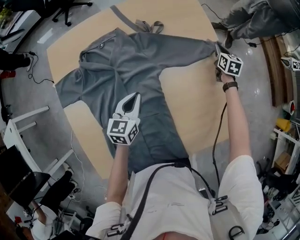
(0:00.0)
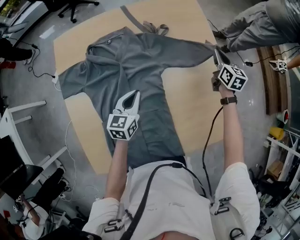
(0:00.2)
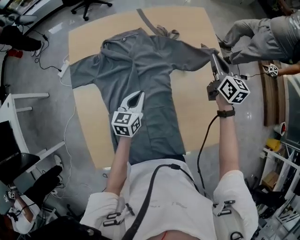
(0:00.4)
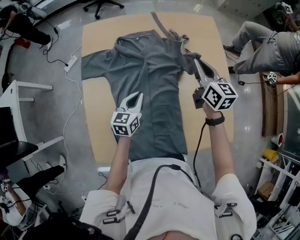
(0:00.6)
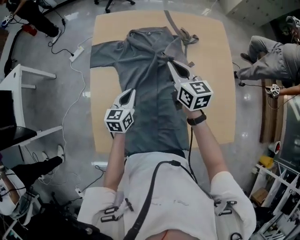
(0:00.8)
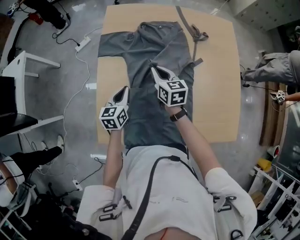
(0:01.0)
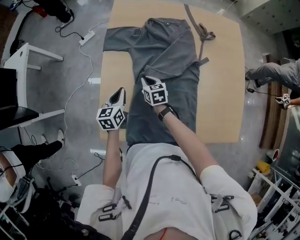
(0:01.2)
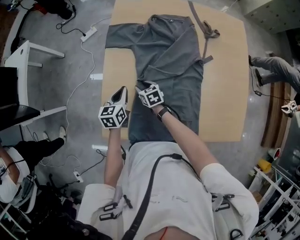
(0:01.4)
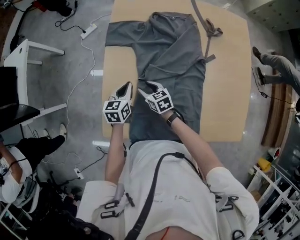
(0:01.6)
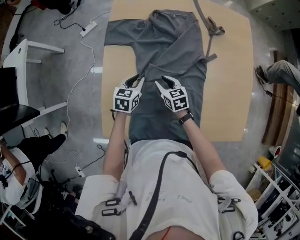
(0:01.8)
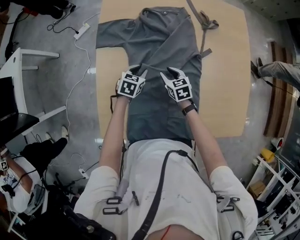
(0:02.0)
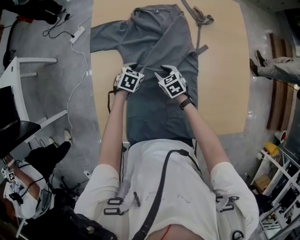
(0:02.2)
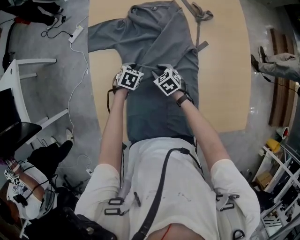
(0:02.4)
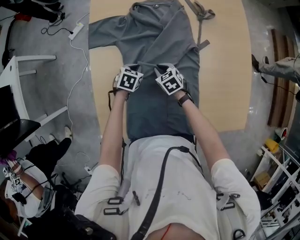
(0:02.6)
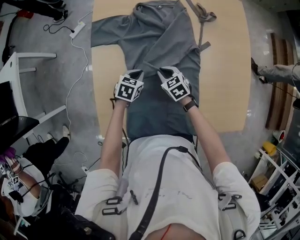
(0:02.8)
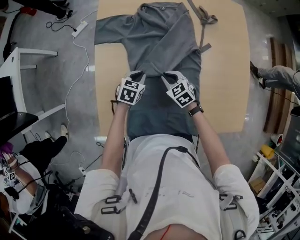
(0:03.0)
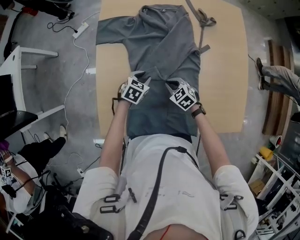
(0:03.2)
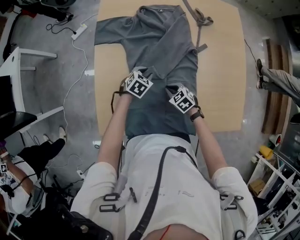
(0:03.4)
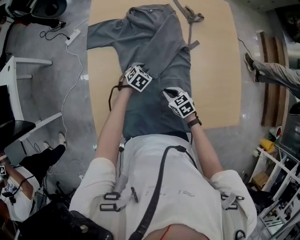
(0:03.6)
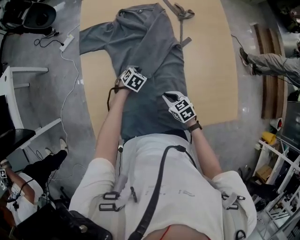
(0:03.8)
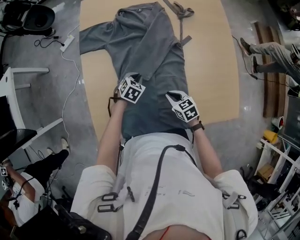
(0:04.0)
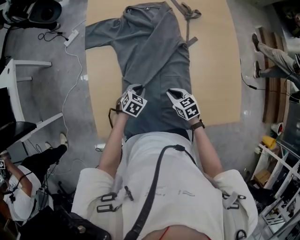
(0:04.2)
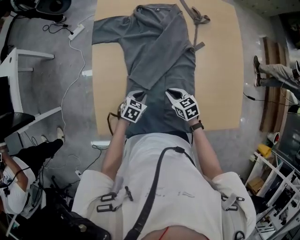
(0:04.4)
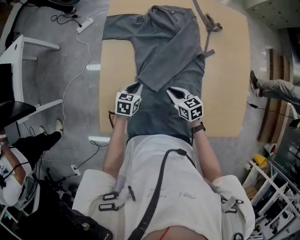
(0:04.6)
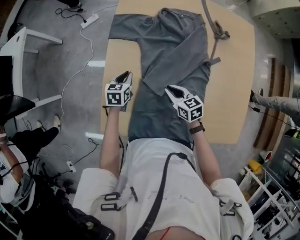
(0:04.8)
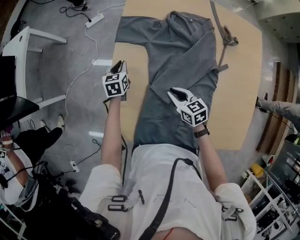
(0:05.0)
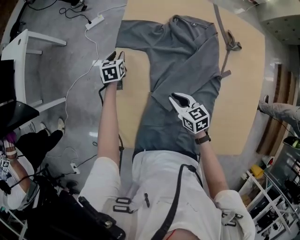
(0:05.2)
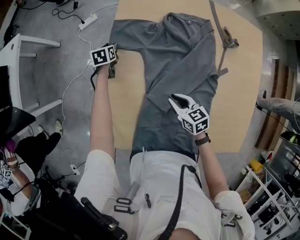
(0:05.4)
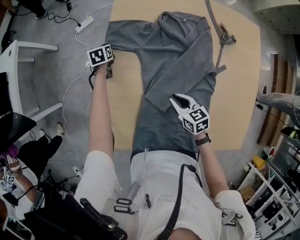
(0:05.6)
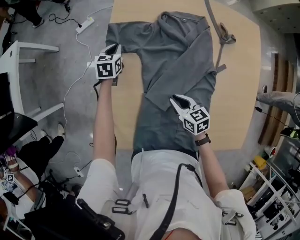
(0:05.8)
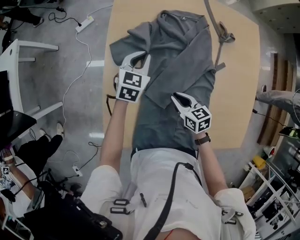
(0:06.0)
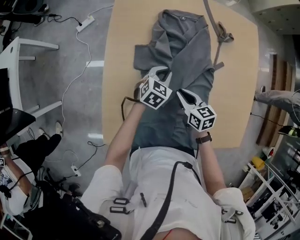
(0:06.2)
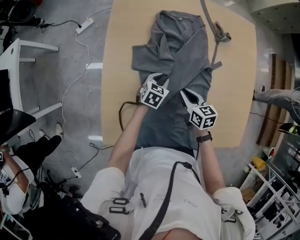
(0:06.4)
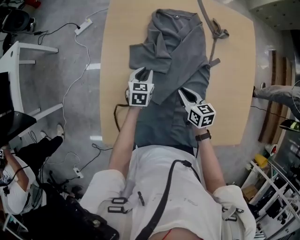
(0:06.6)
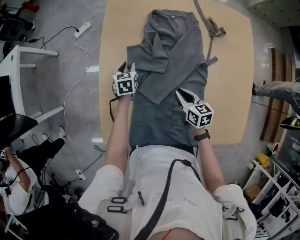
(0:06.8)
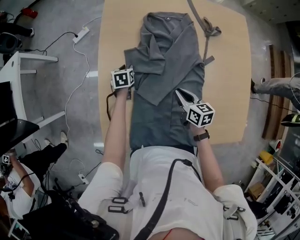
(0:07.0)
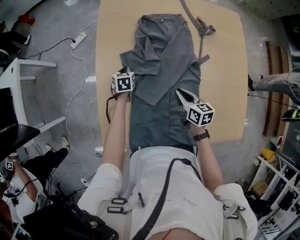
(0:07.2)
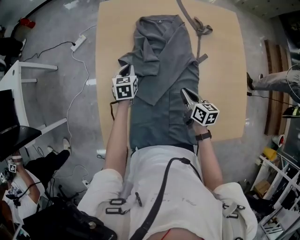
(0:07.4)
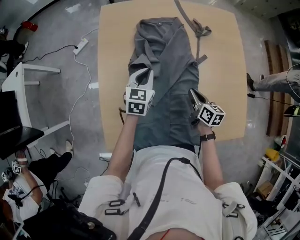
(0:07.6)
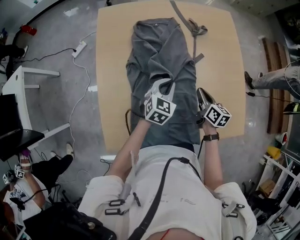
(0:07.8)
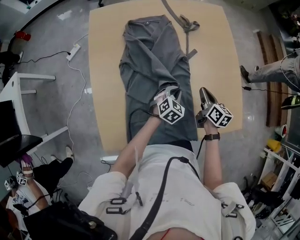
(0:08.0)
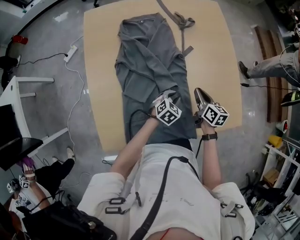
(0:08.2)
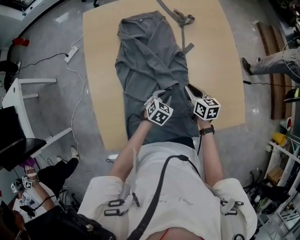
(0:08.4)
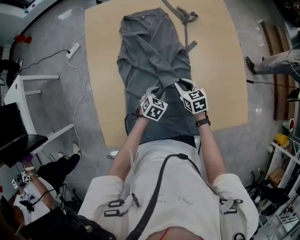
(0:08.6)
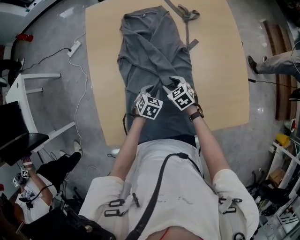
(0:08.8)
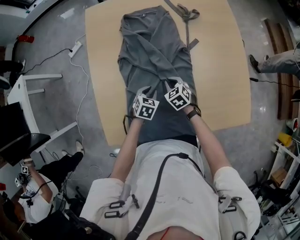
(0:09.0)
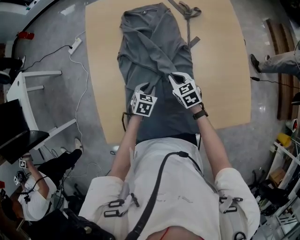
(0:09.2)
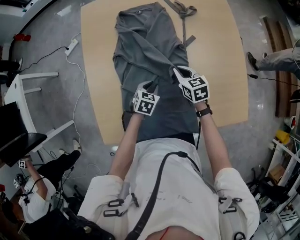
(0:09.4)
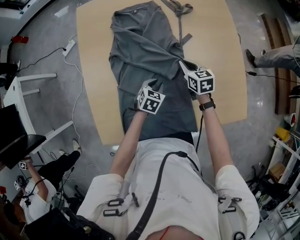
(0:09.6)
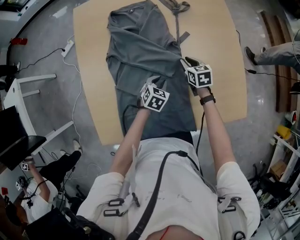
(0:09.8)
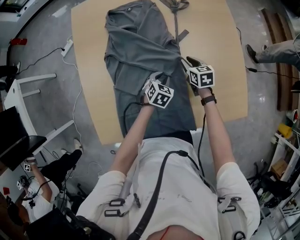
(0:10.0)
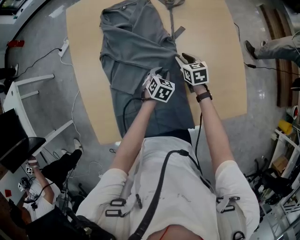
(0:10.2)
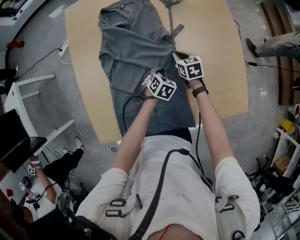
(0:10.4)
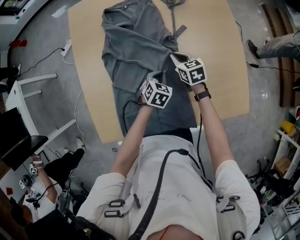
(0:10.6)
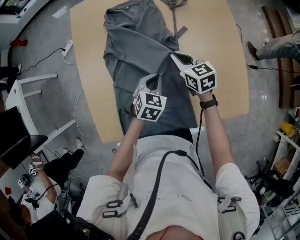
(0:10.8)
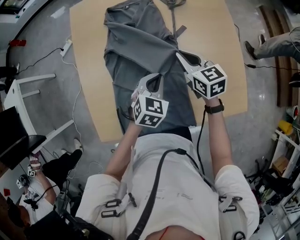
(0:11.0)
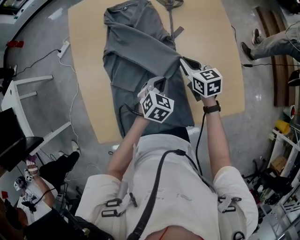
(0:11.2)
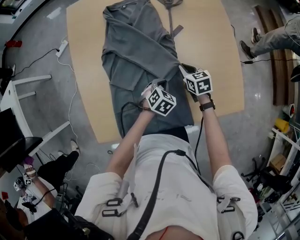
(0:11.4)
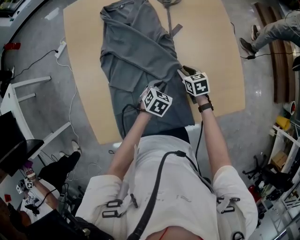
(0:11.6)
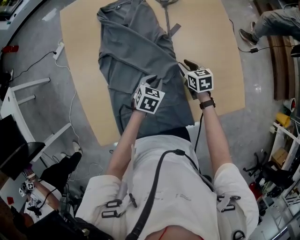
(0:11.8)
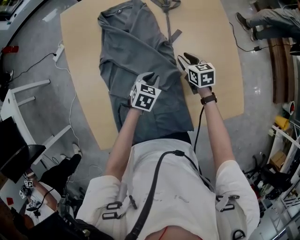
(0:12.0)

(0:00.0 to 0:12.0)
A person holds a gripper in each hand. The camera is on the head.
0:00.0 - 0:01.6: The right gripper travels upward and back again, about 25 cm each way, swivels roughly 60 degrees, and opens its fingers. Meanwhile the left gripper moves approximately 30 cm, and rotates approximately 30 degrees.
0:01.6 - 0:03.0: The right gripper is displaced to the right by some 15 cm, changes its angle by roughly 20 degrees, and closes up, while the left gripper moves to the right and downward, about 10 cm, changes its angle by some 30 degrees, and opens and closes again.
0:03.0 - 0:04.4: The two grippers go some 10 cm backward. The right gripper swivels approximately 20 degrees.
0:04.4 - 0:06.0: The right gripper moves roughly 10 cm; the left gripper changes place by some 30 cm, turns by some 30 degrees, and opens, then closes again.
0:06.0 - 0:07.6: The left gripper goes roughly 10 cm to the right and backward, moves about 15 cm downward and comes back, and opens, then closes again. The right gripper moves to the right, roughly 15 cm, and rotates roughly 30 degrees.
0:07.6 - 0:09.0: Both grippers travel together downward, some 15 cm. The left gripper changes its angle by some 30 degrees. Meanwhile the right gripper rotates around the line of its fingers by about 50 degrees, counterclockwise from behind, and opens, then closes once more.
0:09.0 - 0:10.4: The right gripper goes some 15 cm to the right and forward, and swivels some 30 degrees, while the left gripper goes approximately 15 cm to the right.
0:10.4 - 0:12.0: The left gripper is displaced upward by approximately 5 cm, while the right gripper moves up and down over some 20 cm, changing direction 2 times.

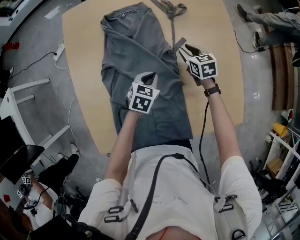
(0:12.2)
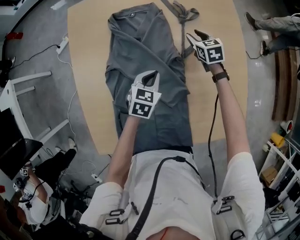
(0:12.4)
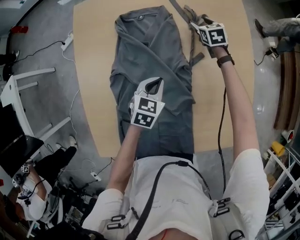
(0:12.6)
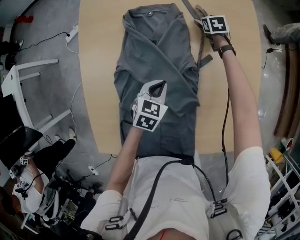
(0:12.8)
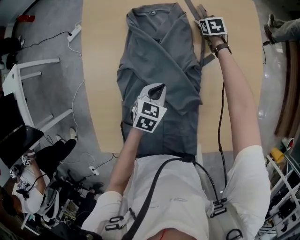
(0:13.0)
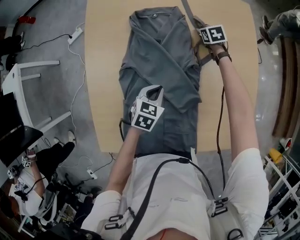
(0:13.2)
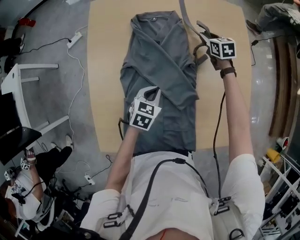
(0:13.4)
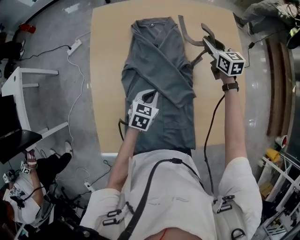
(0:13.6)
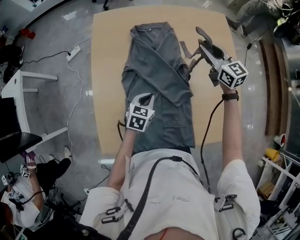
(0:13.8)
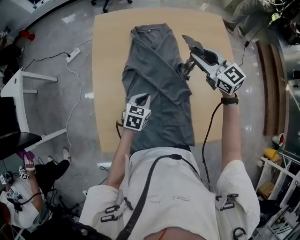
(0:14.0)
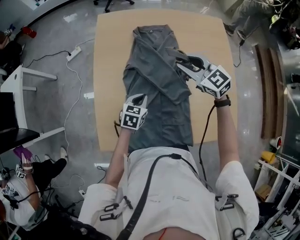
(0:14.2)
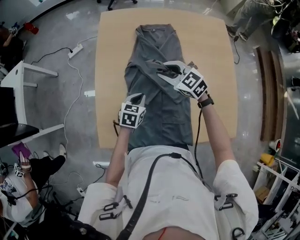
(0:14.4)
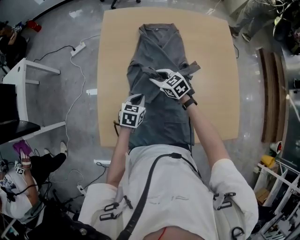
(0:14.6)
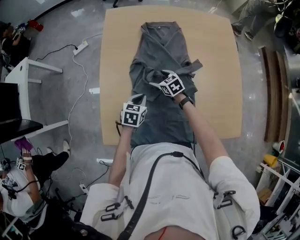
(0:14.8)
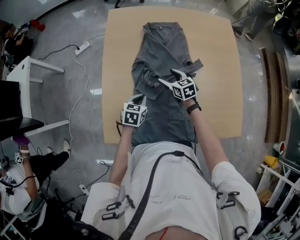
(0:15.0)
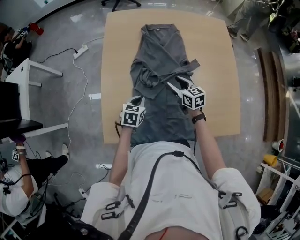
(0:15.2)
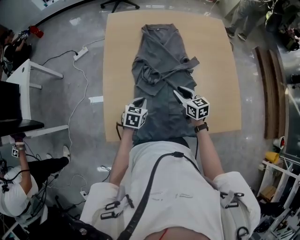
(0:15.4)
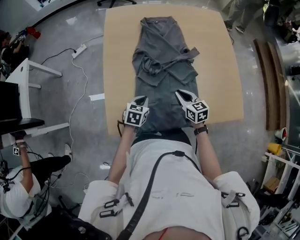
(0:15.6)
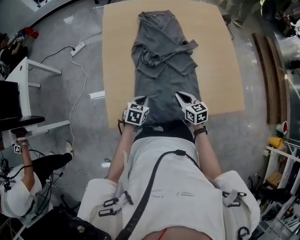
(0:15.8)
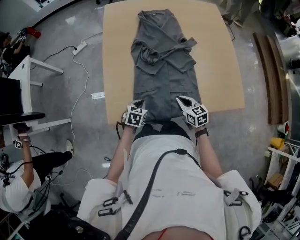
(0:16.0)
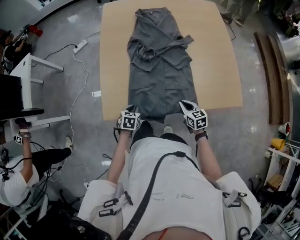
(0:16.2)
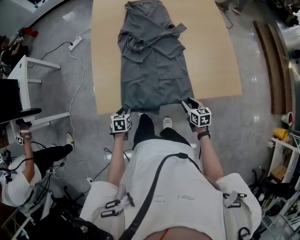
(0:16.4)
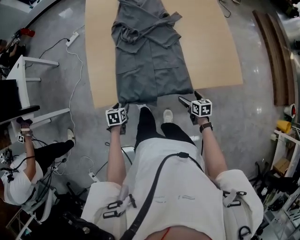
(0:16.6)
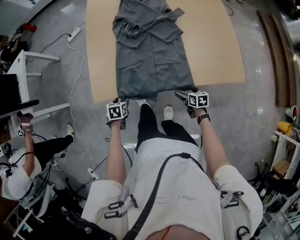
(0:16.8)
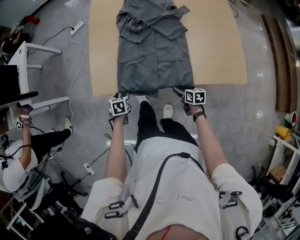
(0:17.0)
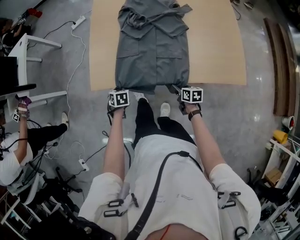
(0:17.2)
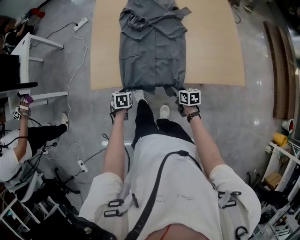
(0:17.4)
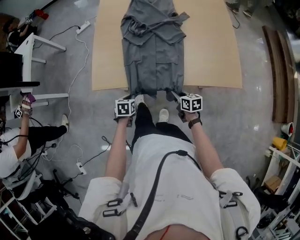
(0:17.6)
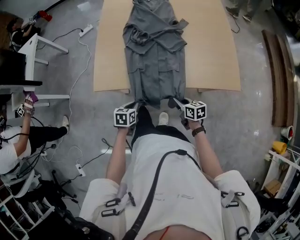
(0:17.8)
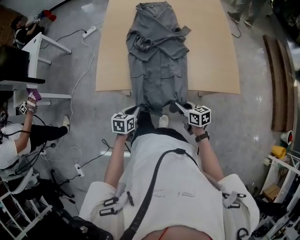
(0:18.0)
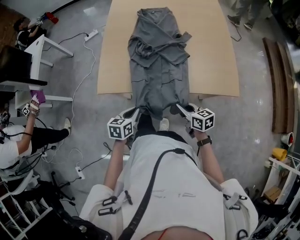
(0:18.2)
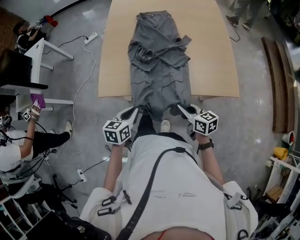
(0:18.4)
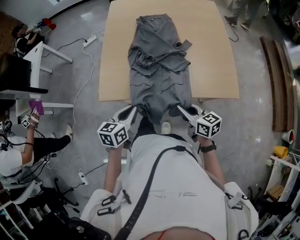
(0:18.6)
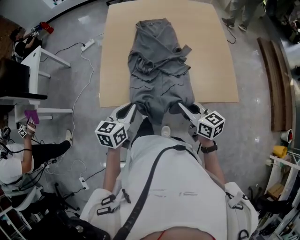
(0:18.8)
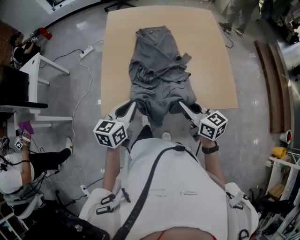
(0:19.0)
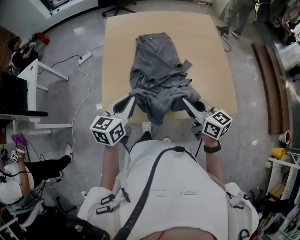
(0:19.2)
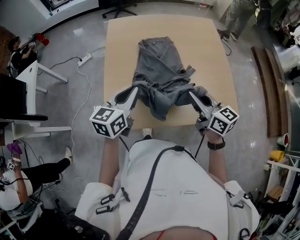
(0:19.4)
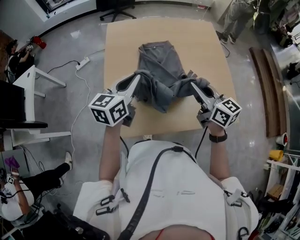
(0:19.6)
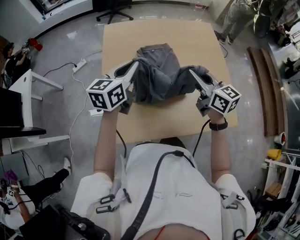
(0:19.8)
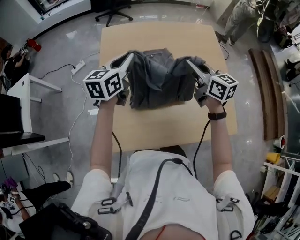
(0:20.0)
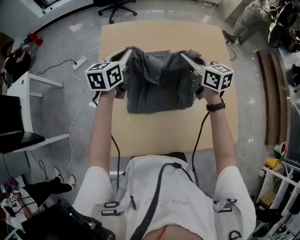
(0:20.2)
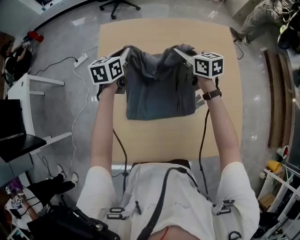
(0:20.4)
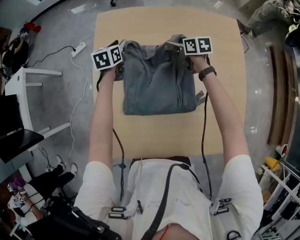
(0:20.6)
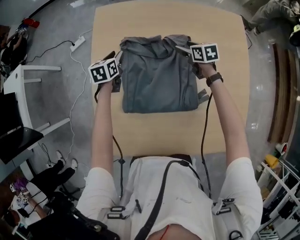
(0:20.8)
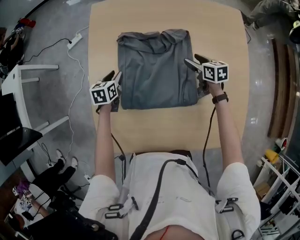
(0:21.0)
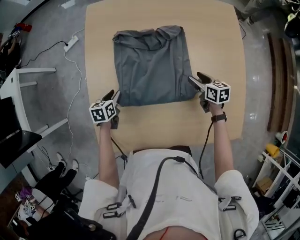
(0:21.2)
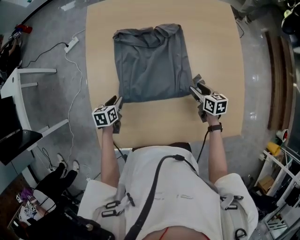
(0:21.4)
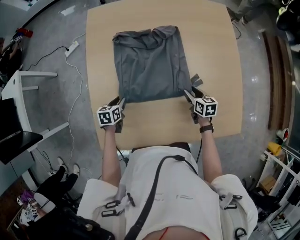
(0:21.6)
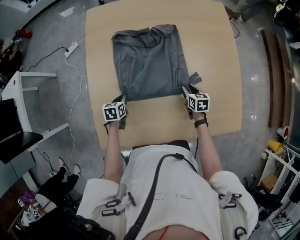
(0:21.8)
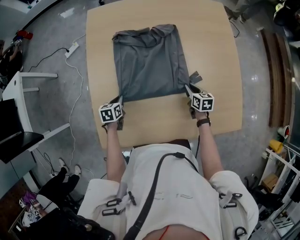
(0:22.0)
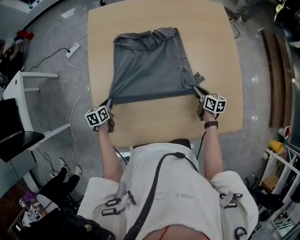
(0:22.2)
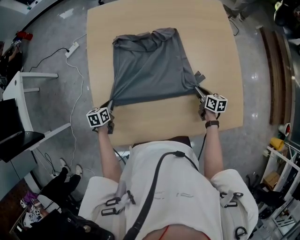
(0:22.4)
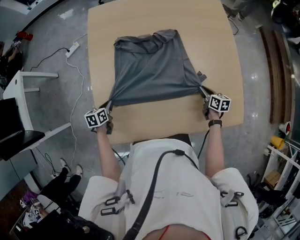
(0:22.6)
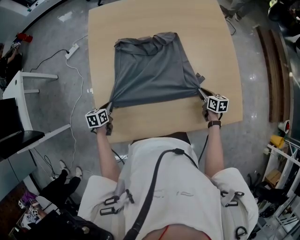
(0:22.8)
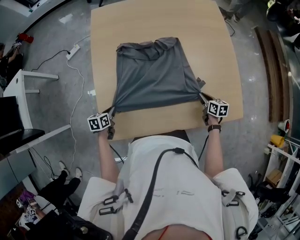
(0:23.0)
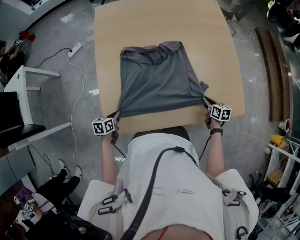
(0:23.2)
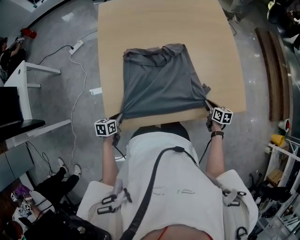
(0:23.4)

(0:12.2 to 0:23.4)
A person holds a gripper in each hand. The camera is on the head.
0:12.2 - 0:13.8: The right gripper moves upward, some 25 cm, rotates roughly 30 degrees, and opens, then closes once more; the left gripper heads to the left and backward, covering roughly 10 cm.
0:13.8 - 0:15.4: The right gripper moves backward, downward and to the left, roughly 30 cm, turns by some 20 degrees, and opens and closes again. The left gripper heads to the left and backward, covering some 15 cm.
0:15.4 - 0:17.0: Both grippers travel together backward and downward, approximately 30 cm. The right gripper changes its angle by some 30 degrees, and opens up. The left gripper changes its angle by some 30 degrees, and opens its fingers.
0:17.0 - 0:18.6: Both grippers travel together upward, about 25 cm. The right gripper turns by some 30 degrees, and closes up. Meanwhile the left gripper tilts its fingers approximately 40 degrees upward, and closes its fingers.
0:18.6 - 0:20.2: Both grippers are carried forward, about 50 cm.
0:20.2 - 0:21.8: Both grippers move downward and backward, about 35 cm. The left gripper tilts its fingers approximately 40 degrees downward, and opens and closes again, while the right gripper angles its fingers downward, by about 30 degrees, and opens, then closes again.
0:21.8 - 0:23.4: The right gripper goes approximately 20 cm backward and to the right; the left gripper shifts about 20 cm backward.
